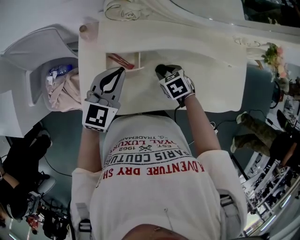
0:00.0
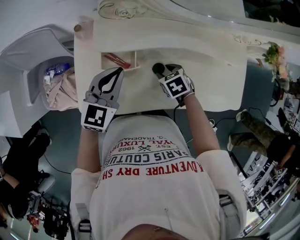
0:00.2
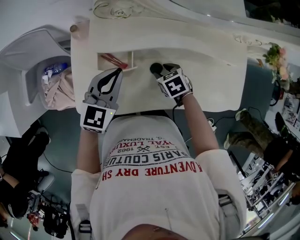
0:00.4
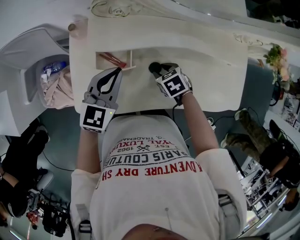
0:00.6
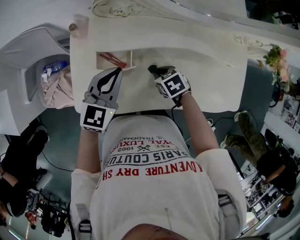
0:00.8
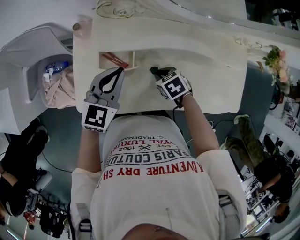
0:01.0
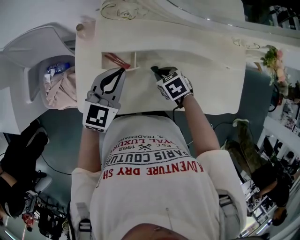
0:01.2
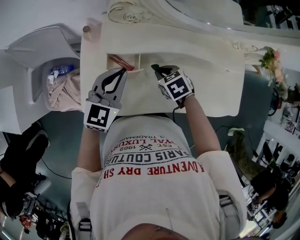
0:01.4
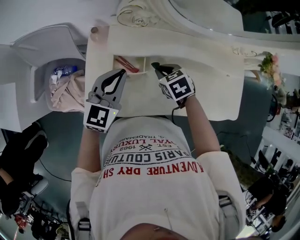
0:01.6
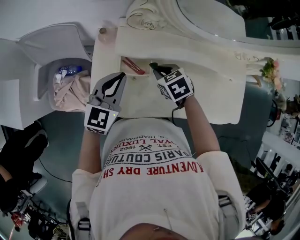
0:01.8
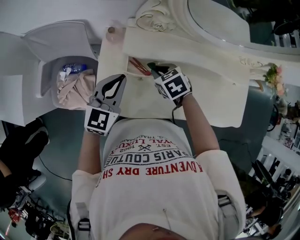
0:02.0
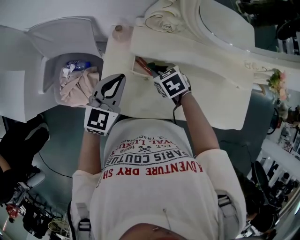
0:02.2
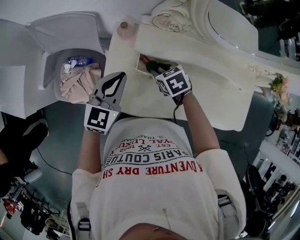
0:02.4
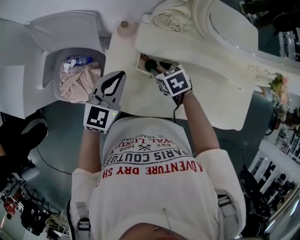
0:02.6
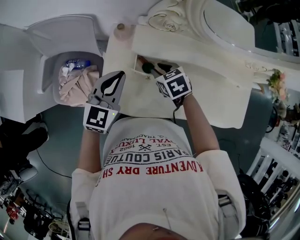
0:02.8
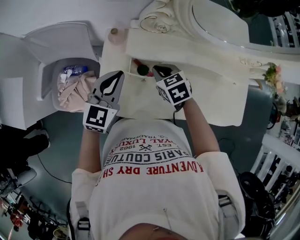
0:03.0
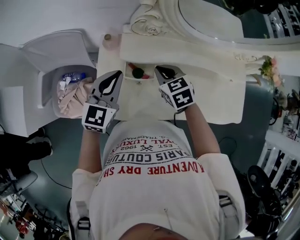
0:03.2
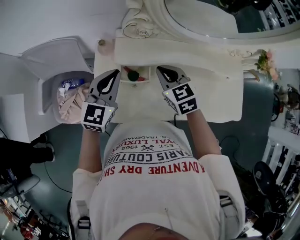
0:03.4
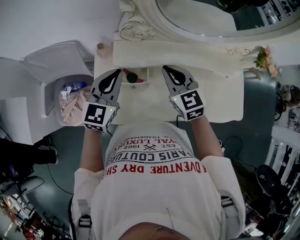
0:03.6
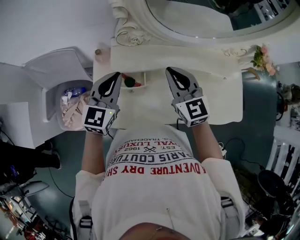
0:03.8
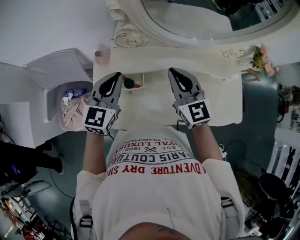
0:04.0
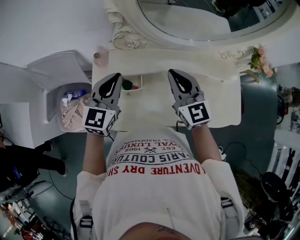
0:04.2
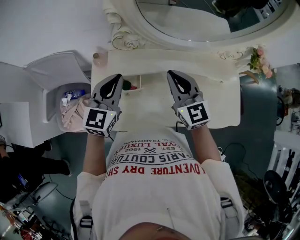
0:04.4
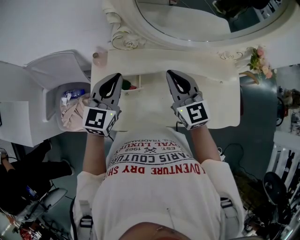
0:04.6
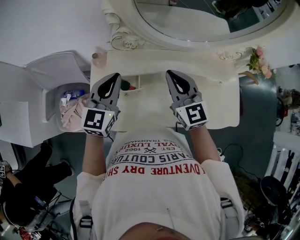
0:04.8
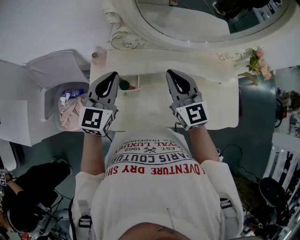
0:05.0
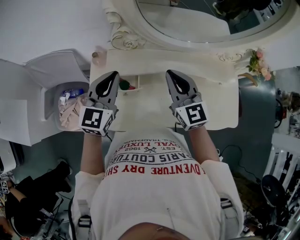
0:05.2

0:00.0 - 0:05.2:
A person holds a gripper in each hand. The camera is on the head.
0:00.0 - 0:01.8: The left gripper is displaced to the left by about 5 cm. Meanwhile the right gripper shifts some 10 cm upward and to the left, and closes.
0:01.8 - 0:03.4: The right gripper goes roughly 10 cm upward, rotates about 20 degrees, and opens, then closes once more, while the left gripper moves about 10 cm to the left and comes back.
0:03.4 - 0:05.2: The left gripper goes approximately 10 cm to the right and upward; the right gripper is displaced upward and to the right by about 15 cm, and swivels approximately 30 degrees.

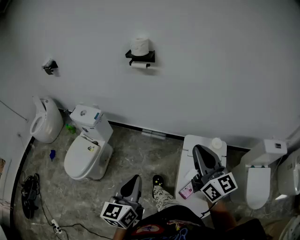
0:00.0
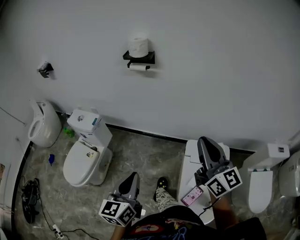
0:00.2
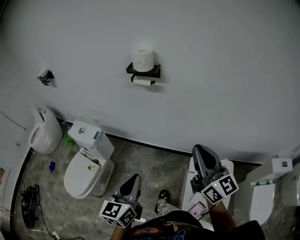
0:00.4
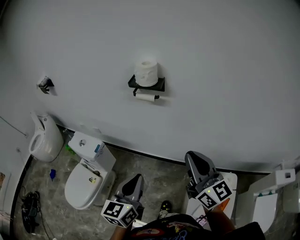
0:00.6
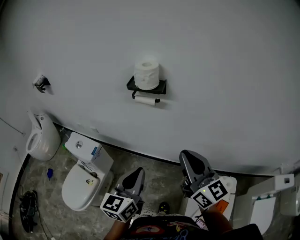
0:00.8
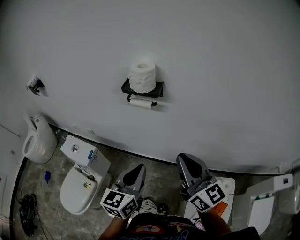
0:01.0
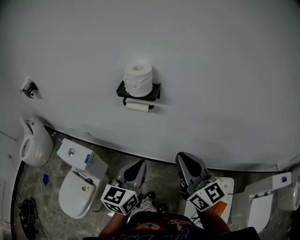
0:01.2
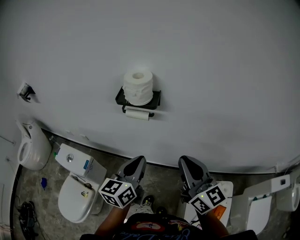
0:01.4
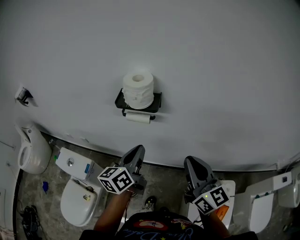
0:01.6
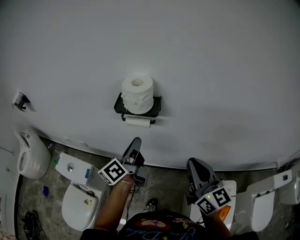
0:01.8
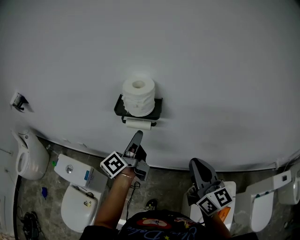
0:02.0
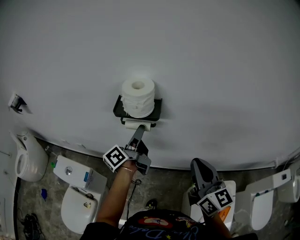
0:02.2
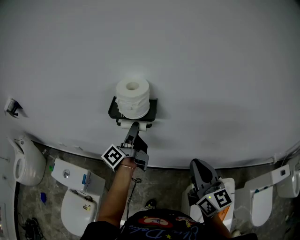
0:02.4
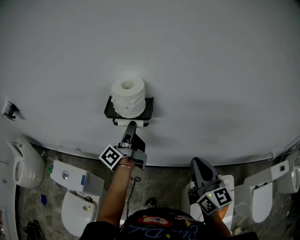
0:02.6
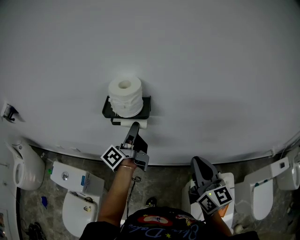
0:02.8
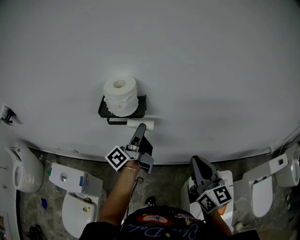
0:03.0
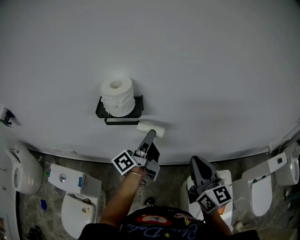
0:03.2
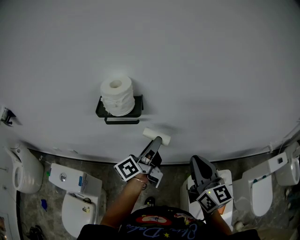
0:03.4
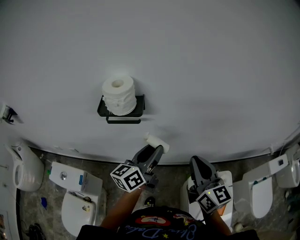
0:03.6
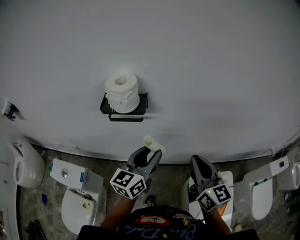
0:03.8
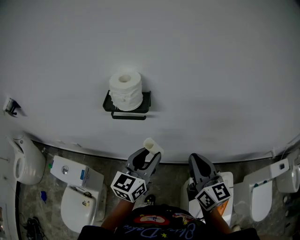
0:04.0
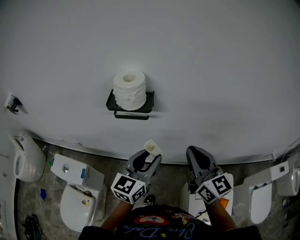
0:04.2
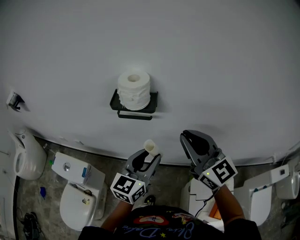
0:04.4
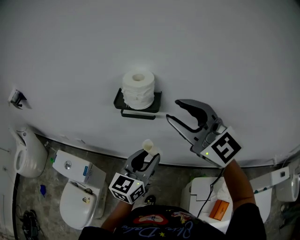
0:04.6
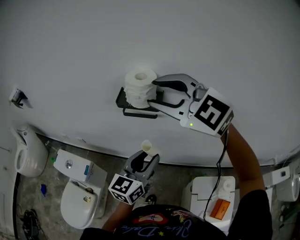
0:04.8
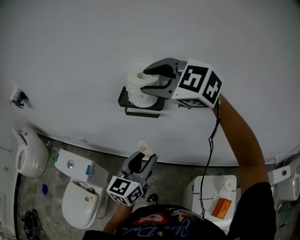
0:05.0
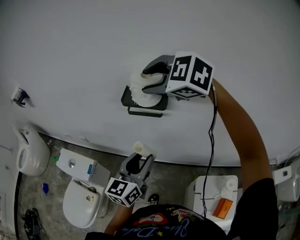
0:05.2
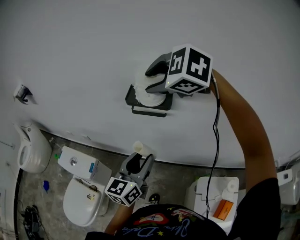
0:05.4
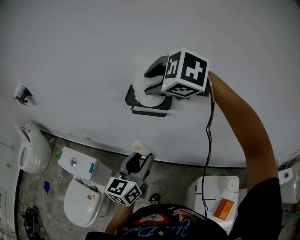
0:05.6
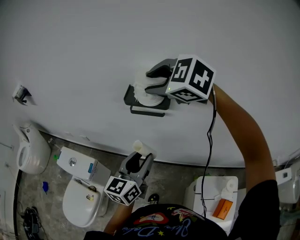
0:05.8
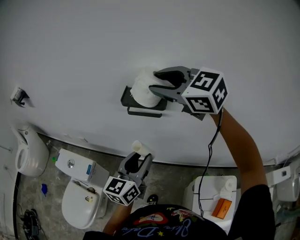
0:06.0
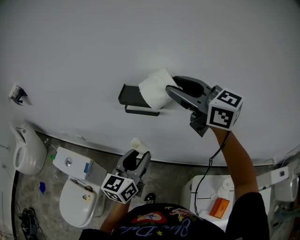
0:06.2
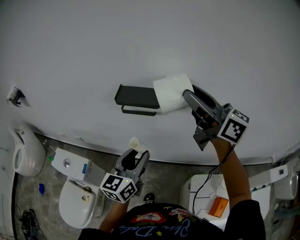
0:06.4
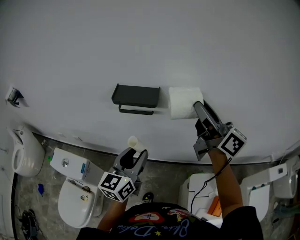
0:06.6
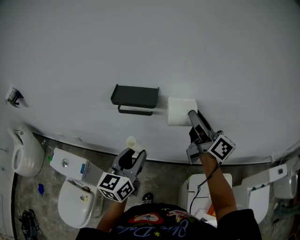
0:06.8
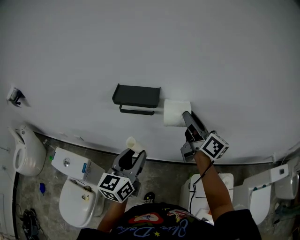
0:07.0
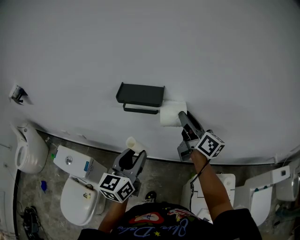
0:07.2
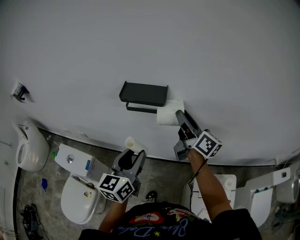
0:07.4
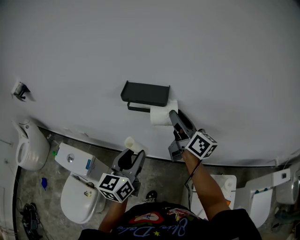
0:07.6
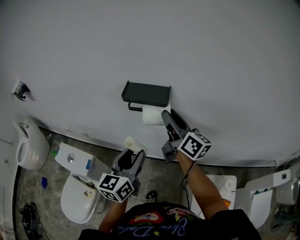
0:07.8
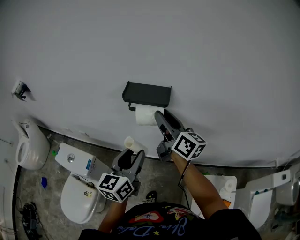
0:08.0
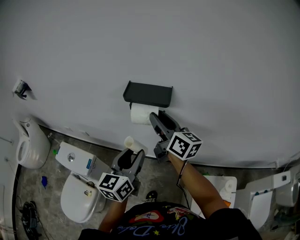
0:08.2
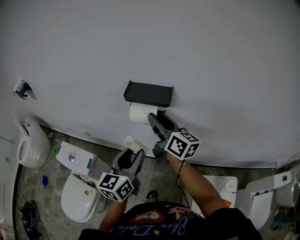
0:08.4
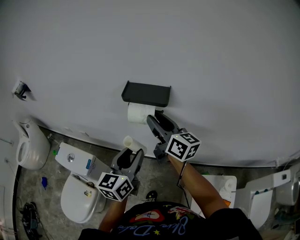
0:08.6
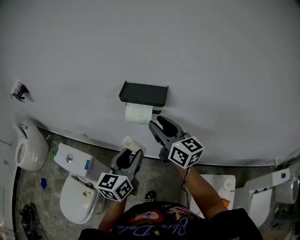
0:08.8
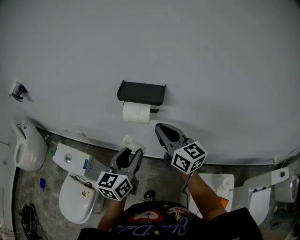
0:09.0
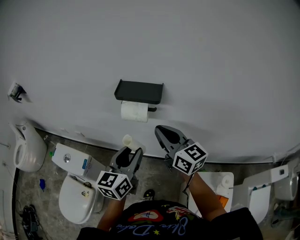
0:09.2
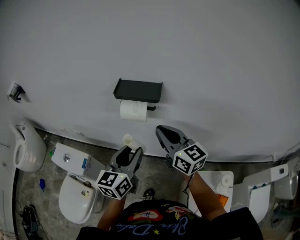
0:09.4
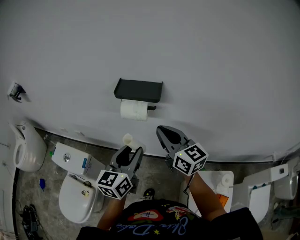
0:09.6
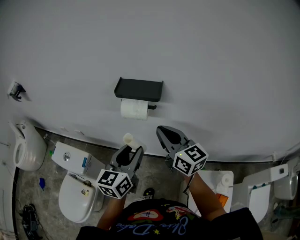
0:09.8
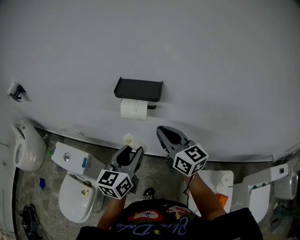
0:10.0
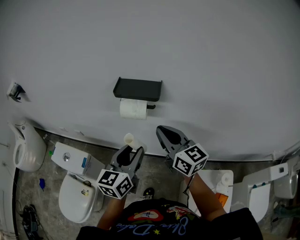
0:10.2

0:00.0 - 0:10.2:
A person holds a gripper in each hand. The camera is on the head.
0:00.0 - 0:01.4: The grippers both shift forward by about 40 cm.
0:01.4 - 0:03.0: The right gripper moves to the right, some 5 cm; the left gripper travels forward by roughly 20 cm, rotates around the line of its fingers by roughly 50 degrees, counterclockwise from behind, and opens its fingers.
0:03.0 - 0:04.4: The right gripper goes roughly 10 cm to the left and upward, and swivels some 30 degrees; the left gripper travels backward by about 15 cm, and twists about 60 degrees clockwise, seen from behind.
0:04.4 - 0:05.8: The right gripper is displaced forward, to the left and upward by some 20 cm, tilts its fingers roughly 40 degrees downward, and opens its fingers, while the left gripper moves to the left, some 10 cm.
0:05.8 - 0:07.2: The right gripper heads to the right and downward, covering approximately 20 cm, and angles its fingers upward, by roughly 50 degrees.
0:07.2 - 0:08.8: The right gripper goes about 15 cm to the left, and swivels some 20 degrees.
0:08.8 - 0:10.2: The right gripper moves about 5 cm, and closes its fingers.

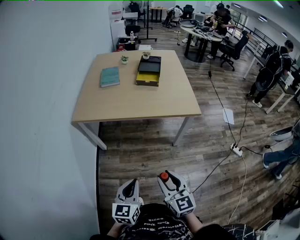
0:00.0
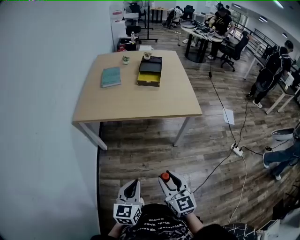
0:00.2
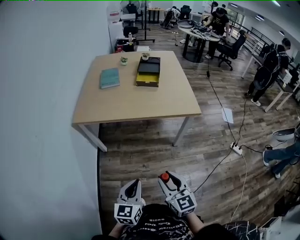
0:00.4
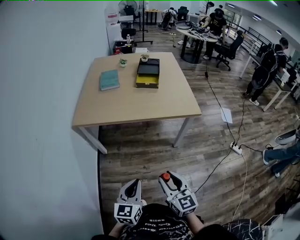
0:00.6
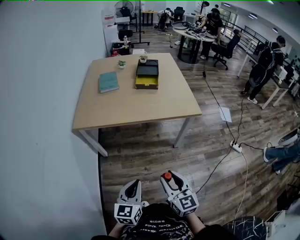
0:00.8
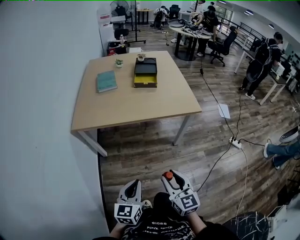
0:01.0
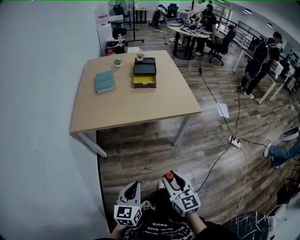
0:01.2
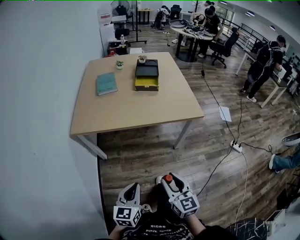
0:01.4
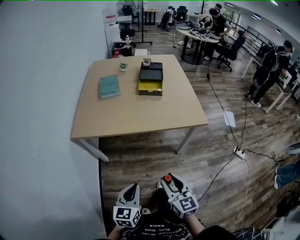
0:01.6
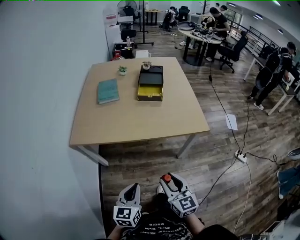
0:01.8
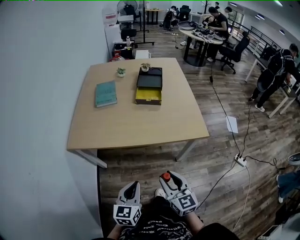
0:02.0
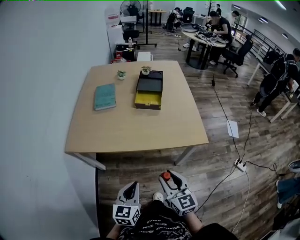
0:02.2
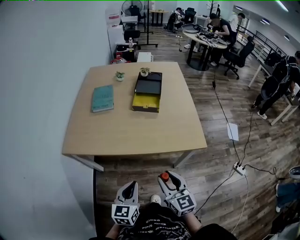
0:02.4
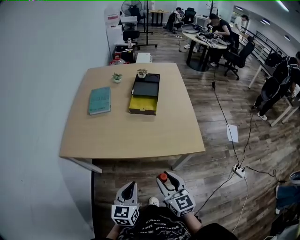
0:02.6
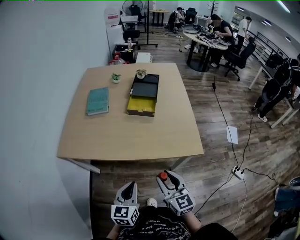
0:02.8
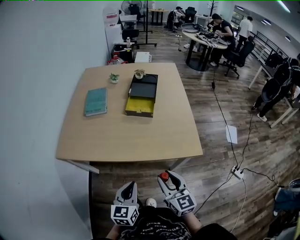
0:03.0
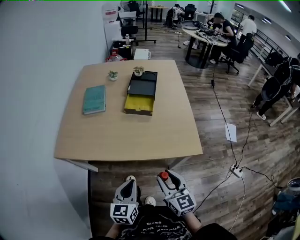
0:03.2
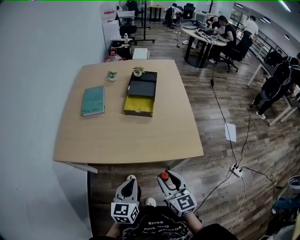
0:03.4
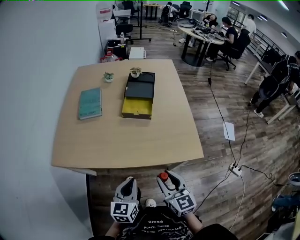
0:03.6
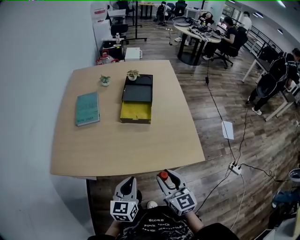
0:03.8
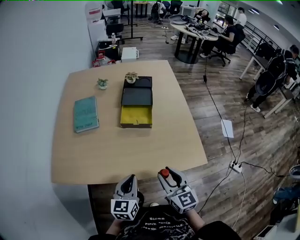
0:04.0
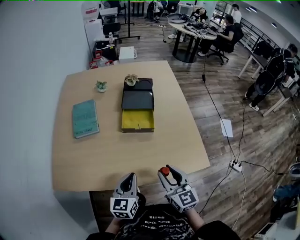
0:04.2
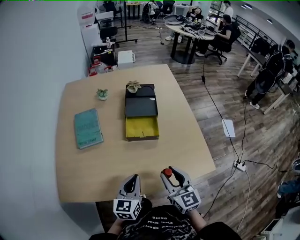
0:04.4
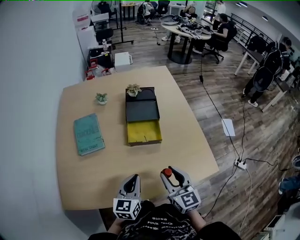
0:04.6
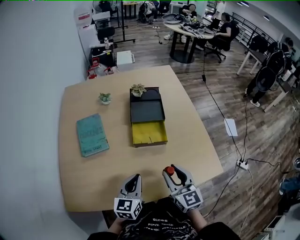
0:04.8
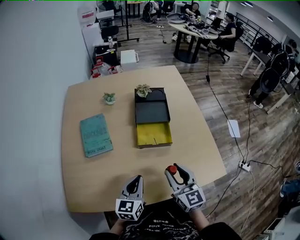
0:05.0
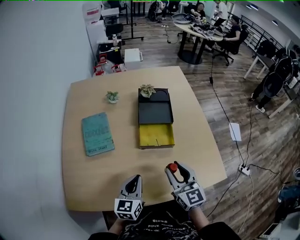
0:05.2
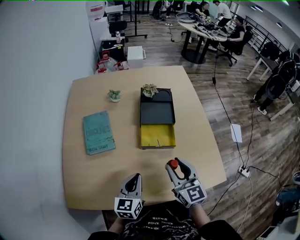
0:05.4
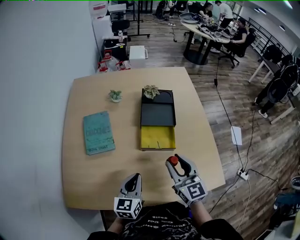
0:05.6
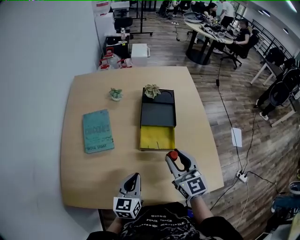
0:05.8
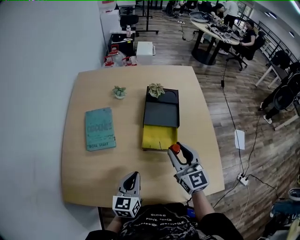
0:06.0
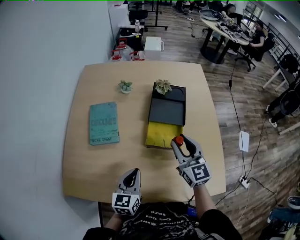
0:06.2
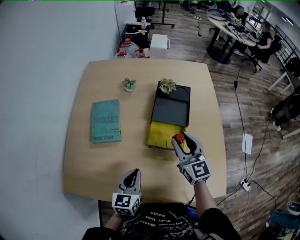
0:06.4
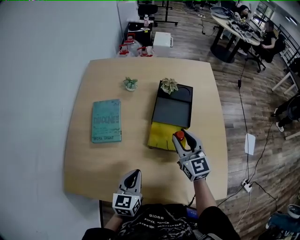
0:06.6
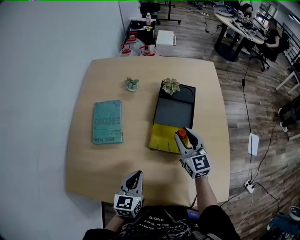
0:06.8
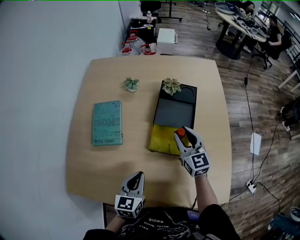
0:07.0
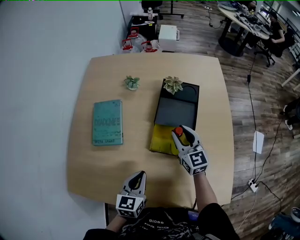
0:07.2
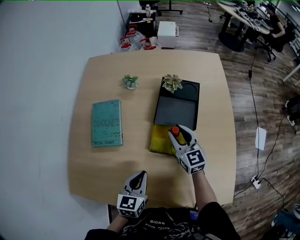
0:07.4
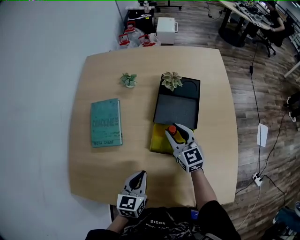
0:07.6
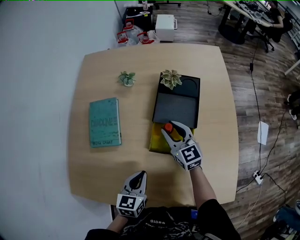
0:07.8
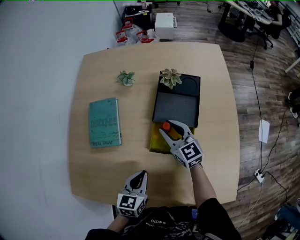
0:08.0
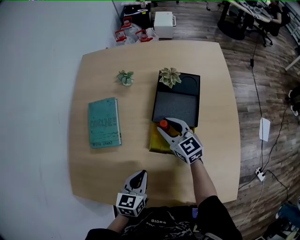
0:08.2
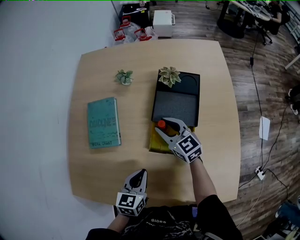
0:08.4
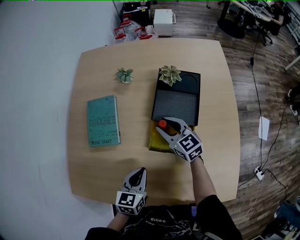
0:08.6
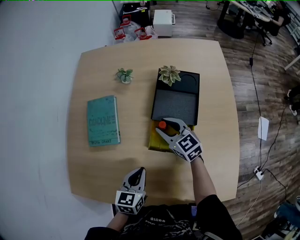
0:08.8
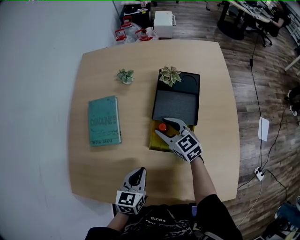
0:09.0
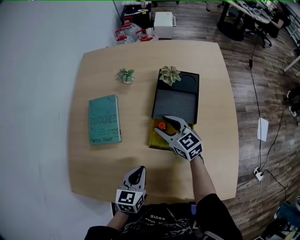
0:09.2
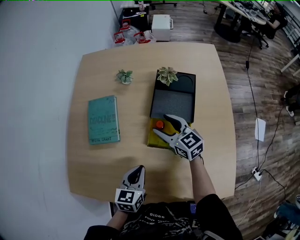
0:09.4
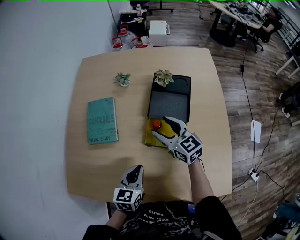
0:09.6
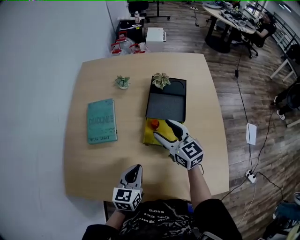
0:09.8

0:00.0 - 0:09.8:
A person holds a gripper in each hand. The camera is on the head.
0:00.0 - 0:01.4: The left gripper heads to the left and forward, covering some 10 cm. Meanwhile the right gripper goes about 5 cm forward.
0:01.4 - 0:02.8: Both grippers move forward and to the right, some 30 cm.
0:02.8 - 0:04.2: Both grippers move forward, approximately 20 cm.
0:04.2 - 0:05.6: The right gripper shifts roughly 20 cm forward; the left gripper goes roughly 15 cm forward and to the left.
0:05.6 - 0:07.0: The left gripper shifts by approximately 5 cm; the right gripper moves forward, roughly 20 cm.
0:07.0 - 0:08.4: The left gripper changes place by about 5 cm, while the right gripper shifts approximately 10 cm to the left, downward and forward, and swivels approximately 20 degrees.
0:08.4 - 0:09.8: The right gripper heads upward and backward, covering approximately 15 cm, and opens up; the left gripper moves approximately 5 cm.
